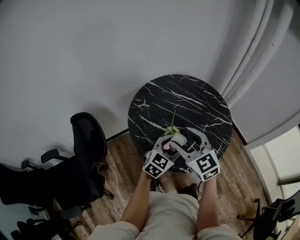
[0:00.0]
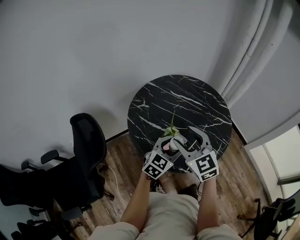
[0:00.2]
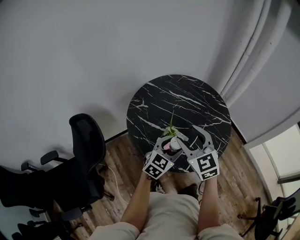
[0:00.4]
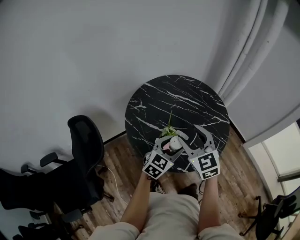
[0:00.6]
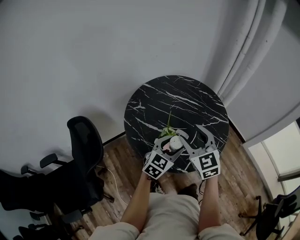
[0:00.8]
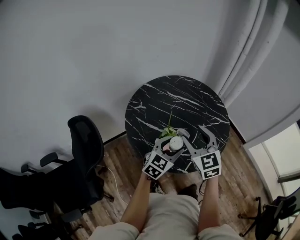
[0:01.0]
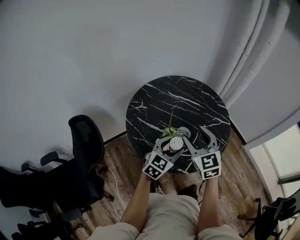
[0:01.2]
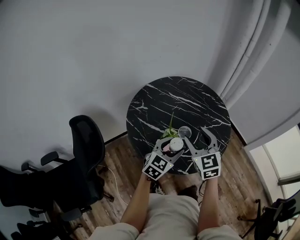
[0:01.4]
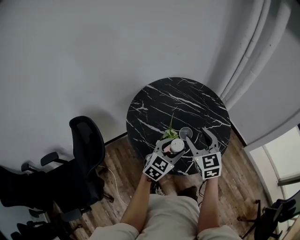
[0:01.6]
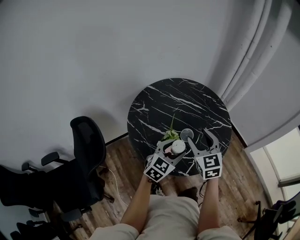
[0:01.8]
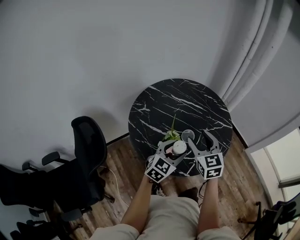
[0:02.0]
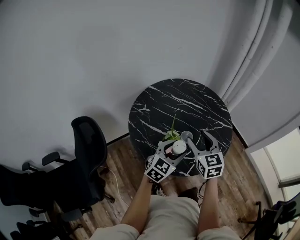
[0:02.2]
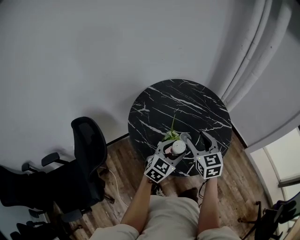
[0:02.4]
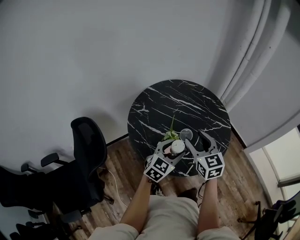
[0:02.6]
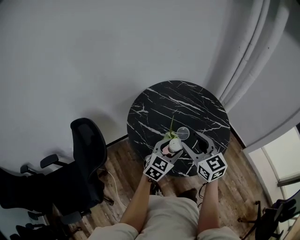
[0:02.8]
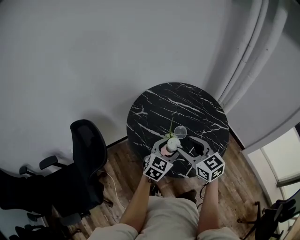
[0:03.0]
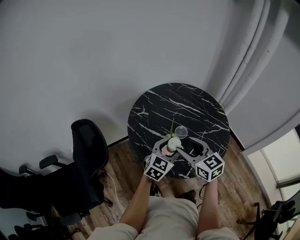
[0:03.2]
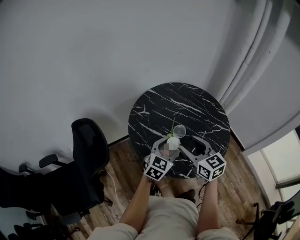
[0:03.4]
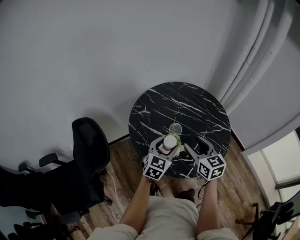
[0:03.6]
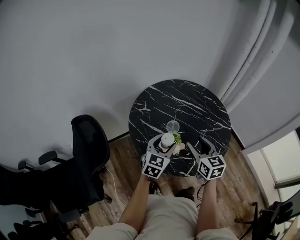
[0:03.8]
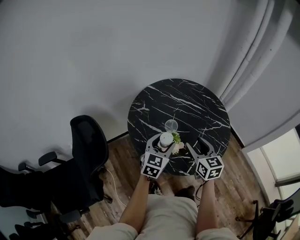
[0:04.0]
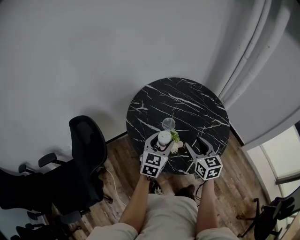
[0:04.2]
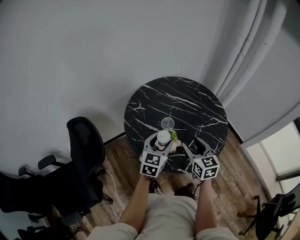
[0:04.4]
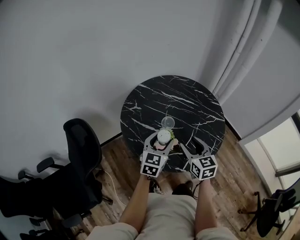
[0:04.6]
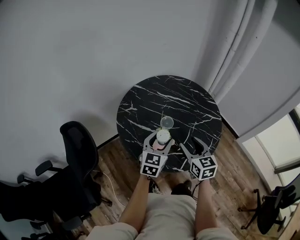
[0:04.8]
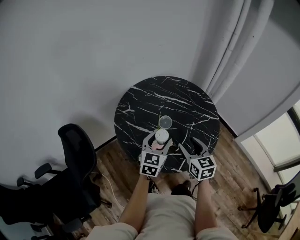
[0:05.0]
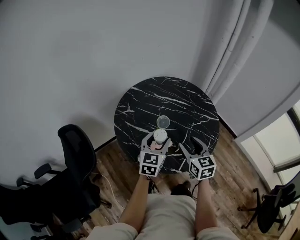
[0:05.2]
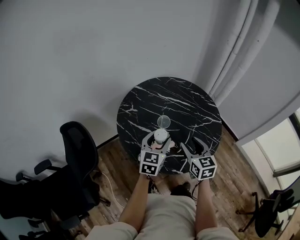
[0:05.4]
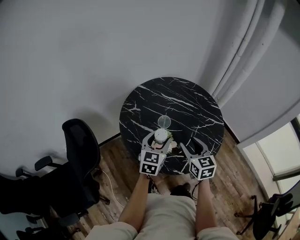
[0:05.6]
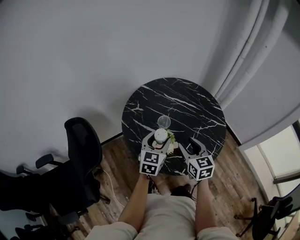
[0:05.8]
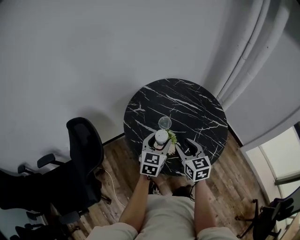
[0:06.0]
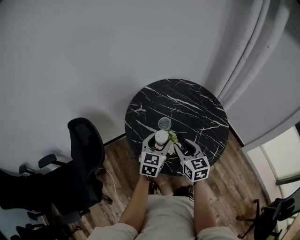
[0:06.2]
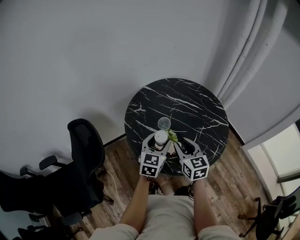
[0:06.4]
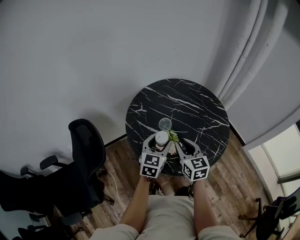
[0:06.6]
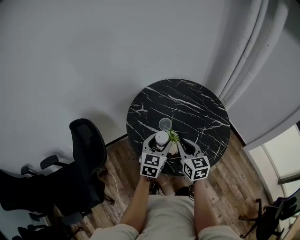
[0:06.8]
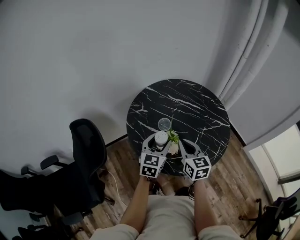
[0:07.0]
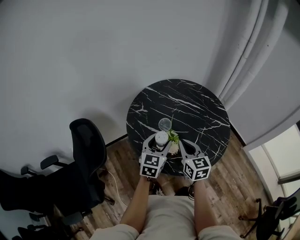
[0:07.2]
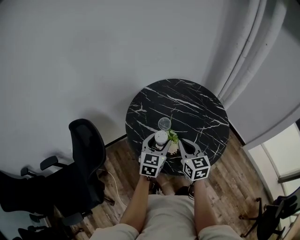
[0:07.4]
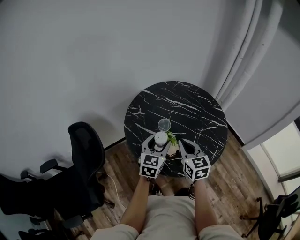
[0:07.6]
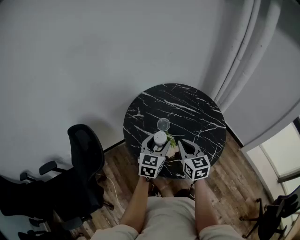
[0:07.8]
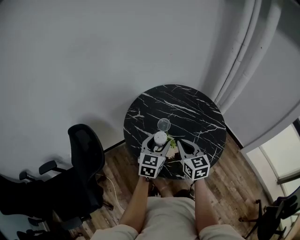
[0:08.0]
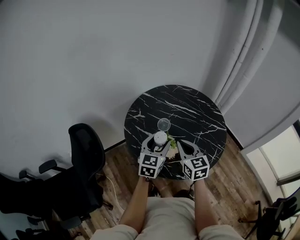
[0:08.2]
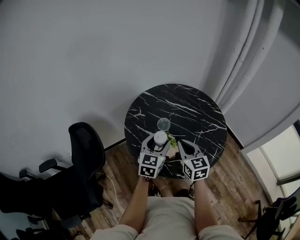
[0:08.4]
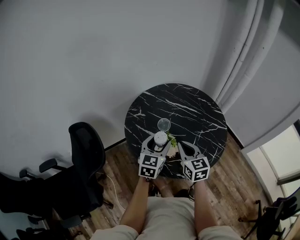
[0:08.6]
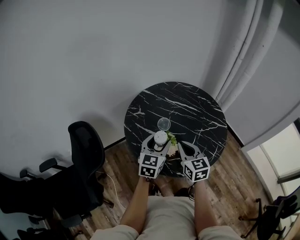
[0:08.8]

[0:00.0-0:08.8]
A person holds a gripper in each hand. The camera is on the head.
0.0 to 1.4 s: The right gripper travels to the right by about 5 cm.
1.4 to 3.0 s: The right gripper moves some 5 cm, and turns by approximately 20 degrees.
3.0 to 4.4 s: The right gripper is displaced downward by some 5 cm, and turns by some 20 degrees.
4.4 to 5.8 s: There are only small adjustments of the grippers.
5.8 to 7.4 s: The right gripper closes up.
7.4 to 8.8 s: There are only small adjustments of the grippers.

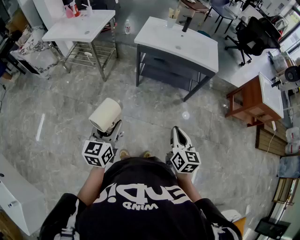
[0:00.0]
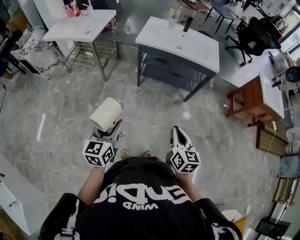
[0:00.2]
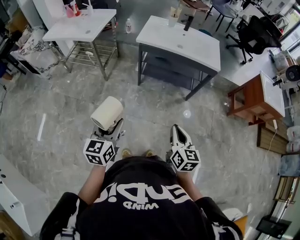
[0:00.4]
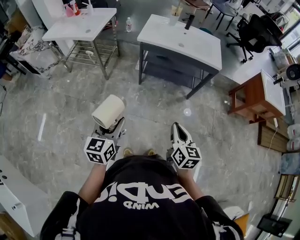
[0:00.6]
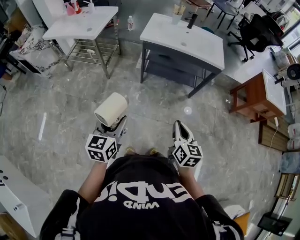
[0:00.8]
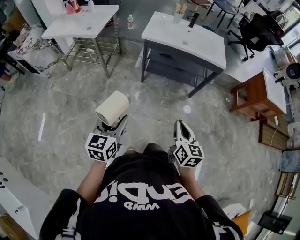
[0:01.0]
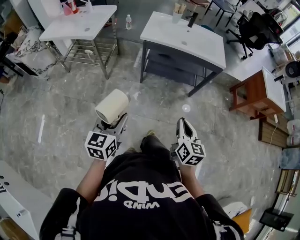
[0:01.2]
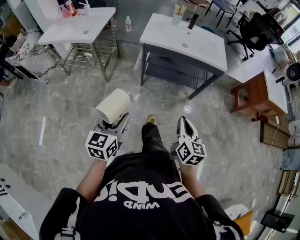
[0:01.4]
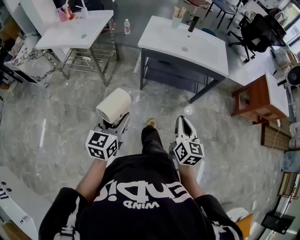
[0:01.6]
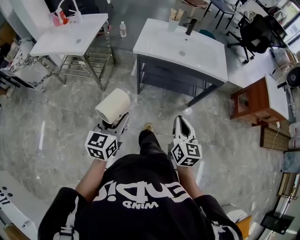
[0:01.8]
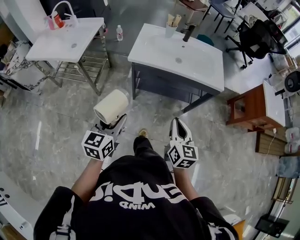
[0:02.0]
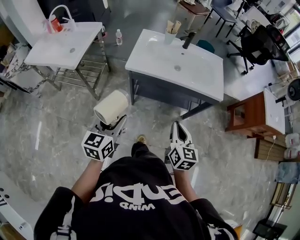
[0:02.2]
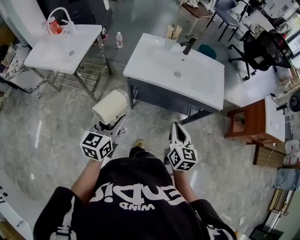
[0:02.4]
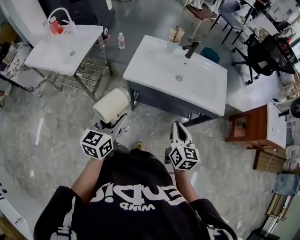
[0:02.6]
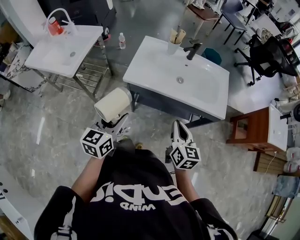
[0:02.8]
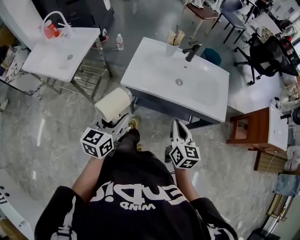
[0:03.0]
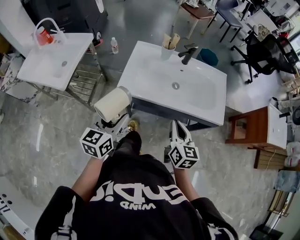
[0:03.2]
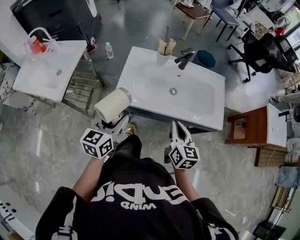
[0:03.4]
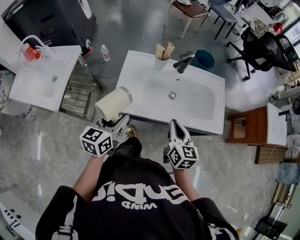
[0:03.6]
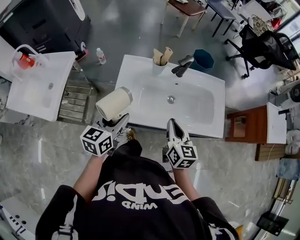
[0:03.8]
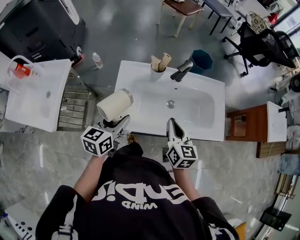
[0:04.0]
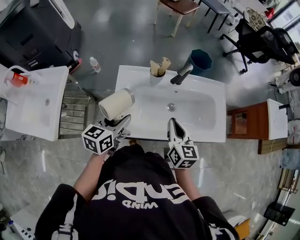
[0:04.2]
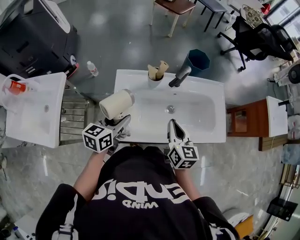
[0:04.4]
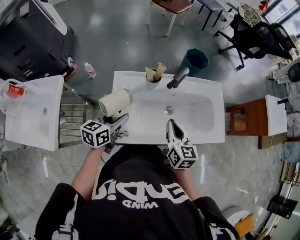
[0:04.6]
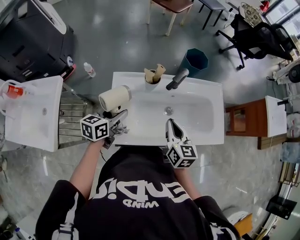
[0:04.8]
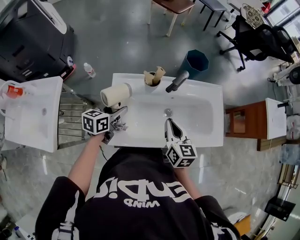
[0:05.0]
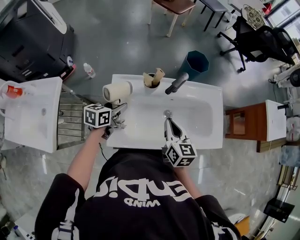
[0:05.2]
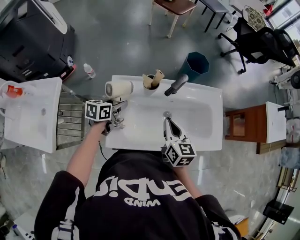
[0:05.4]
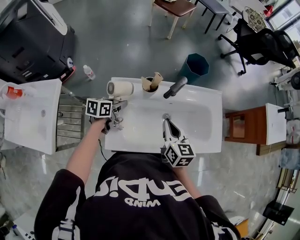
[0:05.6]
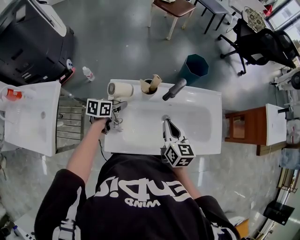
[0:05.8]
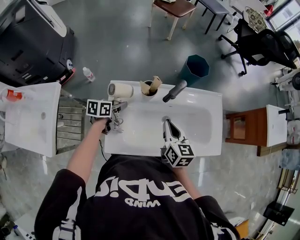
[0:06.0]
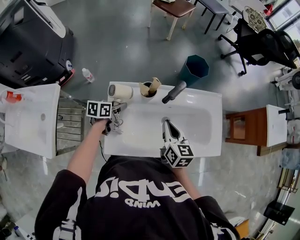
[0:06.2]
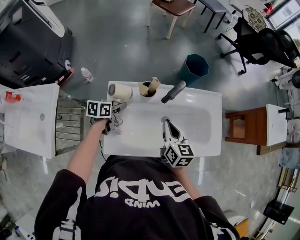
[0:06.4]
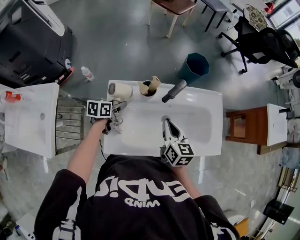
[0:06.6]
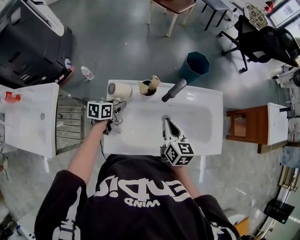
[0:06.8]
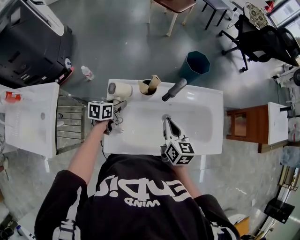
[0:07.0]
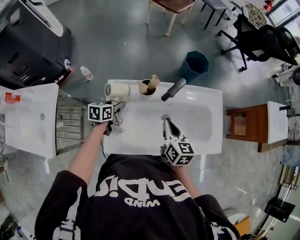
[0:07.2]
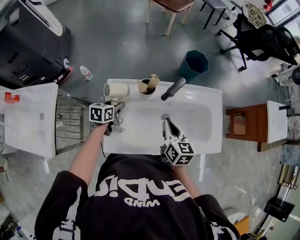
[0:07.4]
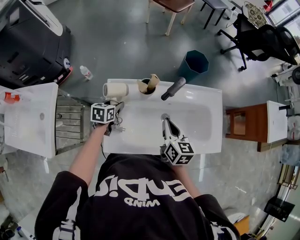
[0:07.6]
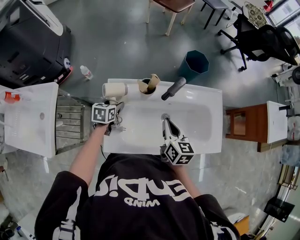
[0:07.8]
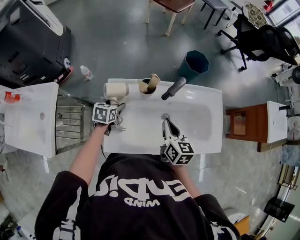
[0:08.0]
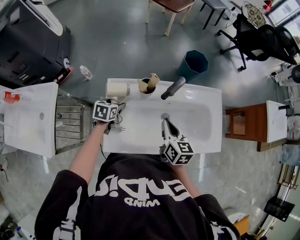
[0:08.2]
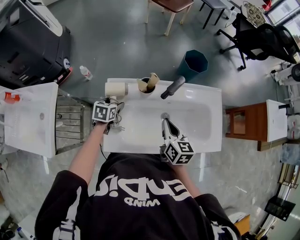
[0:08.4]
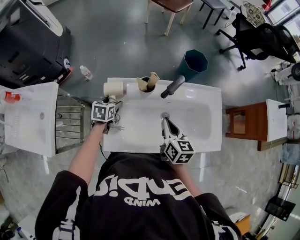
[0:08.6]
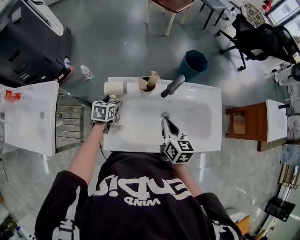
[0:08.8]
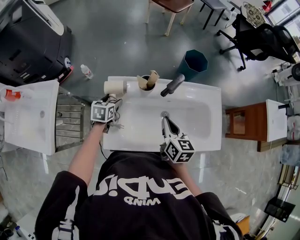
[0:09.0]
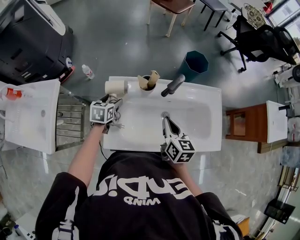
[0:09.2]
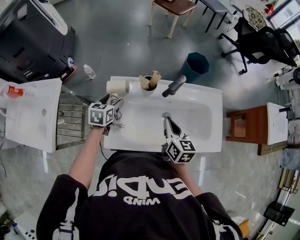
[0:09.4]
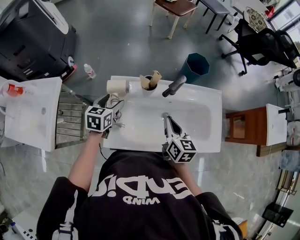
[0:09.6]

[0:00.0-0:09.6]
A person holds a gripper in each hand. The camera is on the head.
0.0 to 1.6 s: The right gripper travels forward and to the left by roughly 15 cm. Meanwhile the left gripper moves forward, roughly 15 cm.
1.6 to 3.2 s: The grippers both shift forward by some 35 cm.
3.2 to 4.8 s: Both grippers travel together forward, approximately 25 cm. The left gripper rotates some 30 degrees.
4.8 to 6.4 s: The left gripper heads forward and downward, covering roughly 15 cm. Meanwhile the right gripper moves forward, some 5 cm.
6.4 to 8.0 s: The left gripper turns by approximately 20 degrees.
8.0 to 9.6 s: The left gripper travels upward by about 10 cm.

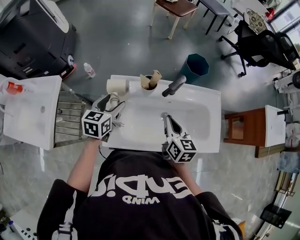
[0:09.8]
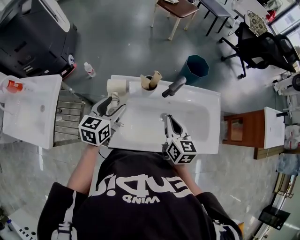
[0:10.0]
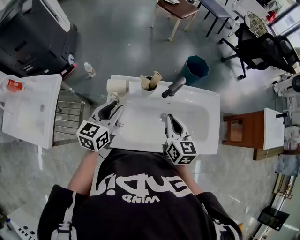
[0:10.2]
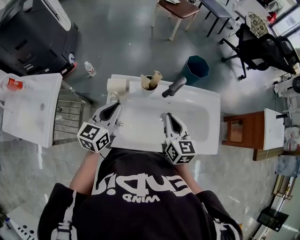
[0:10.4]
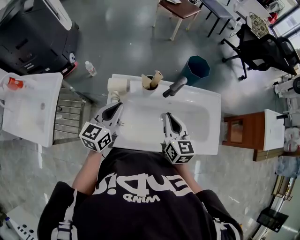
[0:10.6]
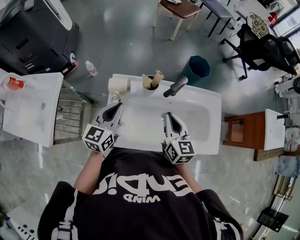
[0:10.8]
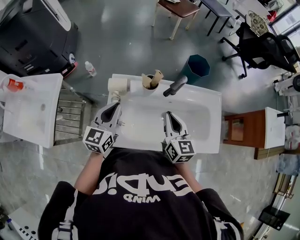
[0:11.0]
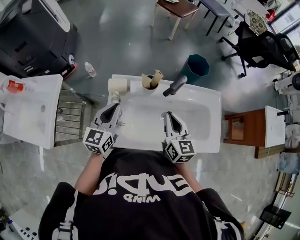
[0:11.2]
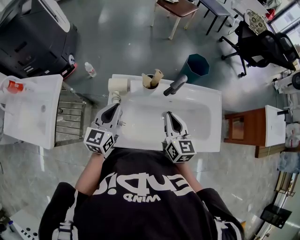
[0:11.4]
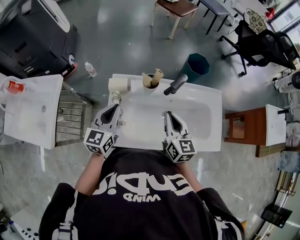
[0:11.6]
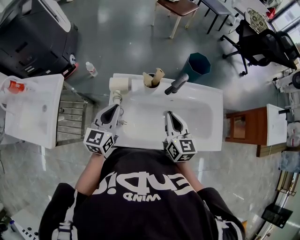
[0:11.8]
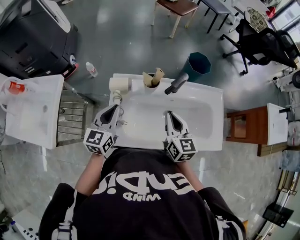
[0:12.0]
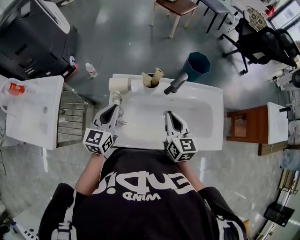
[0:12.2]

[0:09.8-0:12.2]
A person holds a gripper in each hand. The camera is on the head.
9.8 to 11.0 s: The left gripper changes place by some 5 cm, rotates about 20 degrees, and closes.
11.0 to 12.2 s: The grippers move only a little.

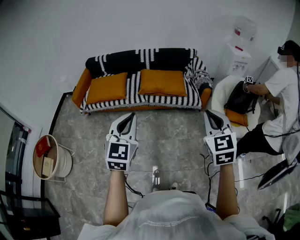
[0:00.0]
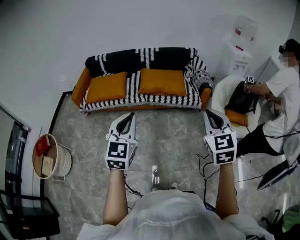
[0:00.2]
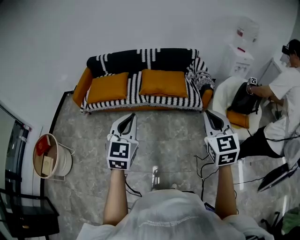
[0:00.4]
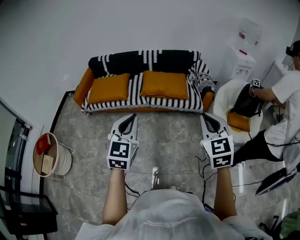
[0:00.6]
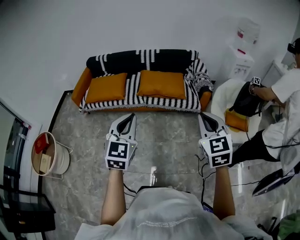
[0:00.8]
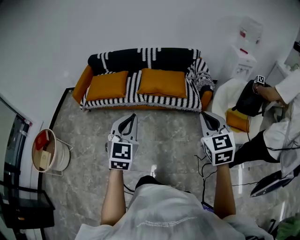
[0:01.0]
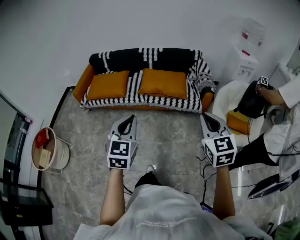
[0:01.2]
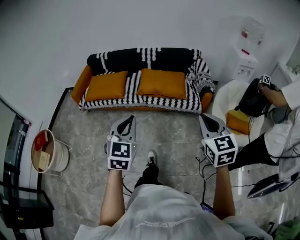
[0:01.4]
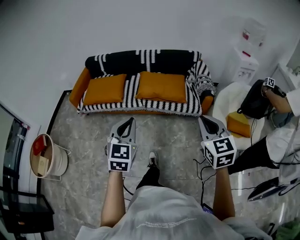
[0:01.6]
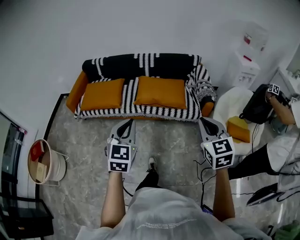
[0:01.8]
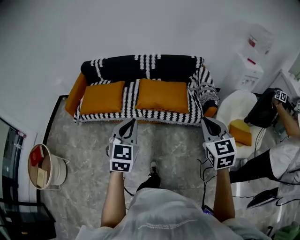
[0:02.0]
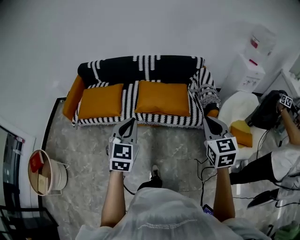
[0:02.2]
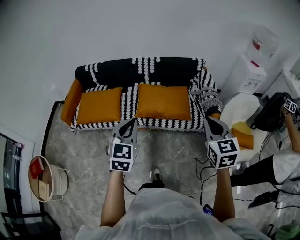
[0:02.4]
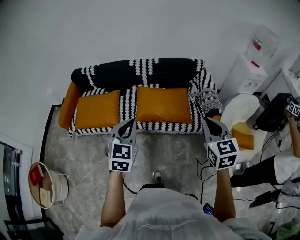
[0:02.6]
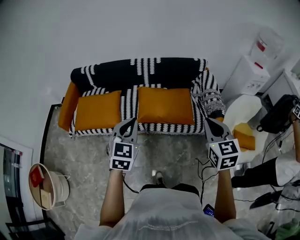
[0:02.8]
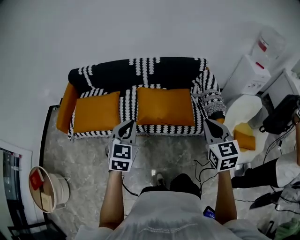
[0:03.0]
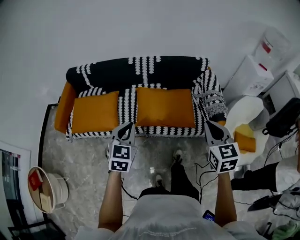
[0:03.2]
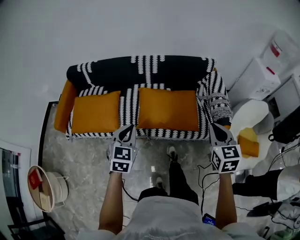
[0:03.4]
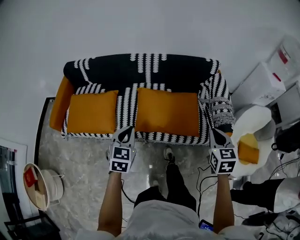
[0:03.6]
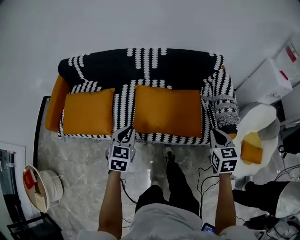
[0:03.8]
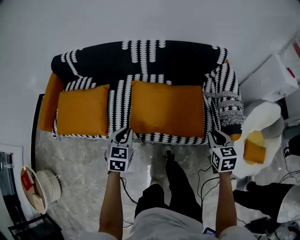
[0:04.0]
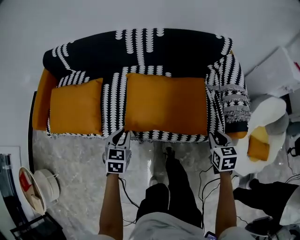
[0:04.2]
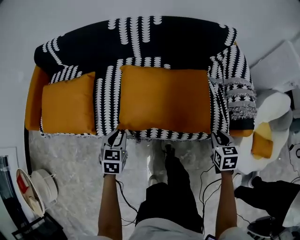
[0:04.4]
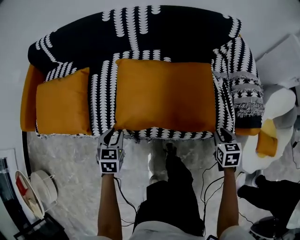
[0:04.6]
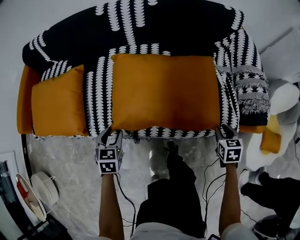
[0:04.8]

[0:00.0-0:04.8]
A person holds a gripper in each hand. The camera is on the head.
0.0 to 1.6 s: Both grippers travel together forward and downward, roughly 10 cm.
1.6 to 3.2 s: Both grippers move forward, about 40 cm.
3.2 to 4.8 s: The grippers both shift downward by about 50 cm. The left gripper turns by some 30 degrees, and opens its fingers, while the right gripper tips its fingers downward by approximately 30 degrees, and opens.
